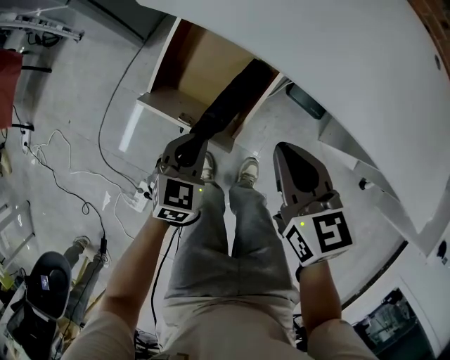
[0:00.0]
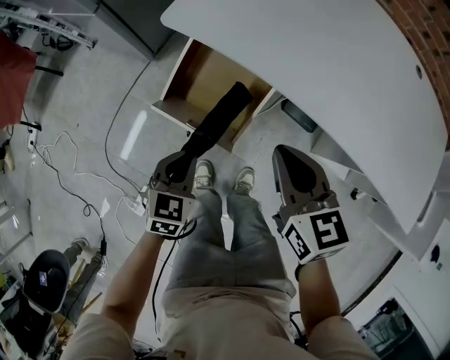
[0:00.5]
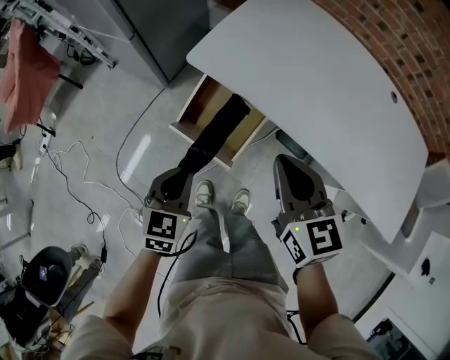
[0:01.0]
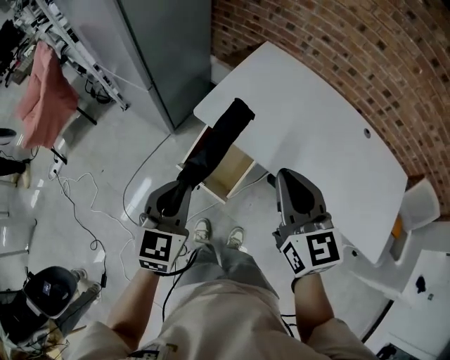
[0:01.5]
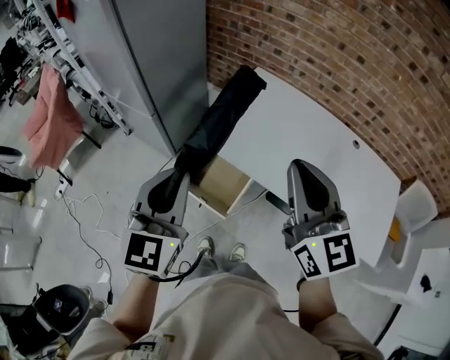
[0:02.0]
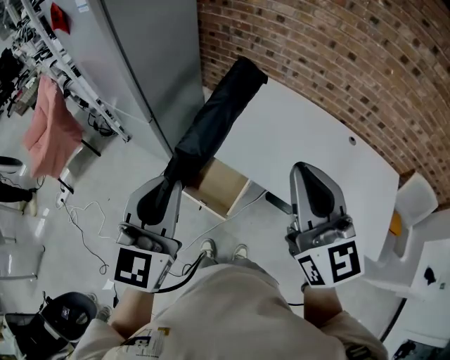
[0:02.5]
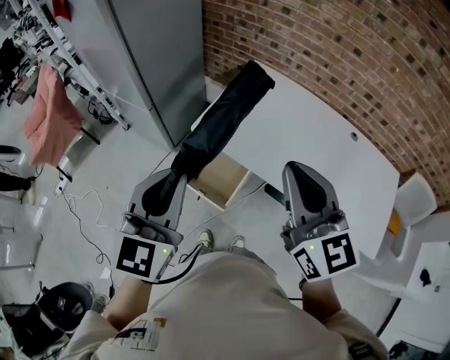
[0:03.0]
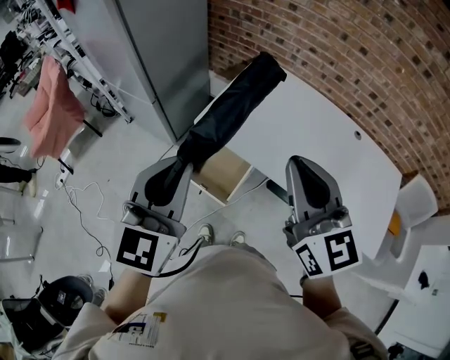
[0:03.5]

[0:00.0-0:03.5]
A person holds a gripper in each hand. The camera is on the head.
0:00.0 to 0:02.0: Both grippers move upward, roughly 50 cm. The left gripper tips its fingers upward by about 40 degrees. The right gripper tilts its fingers about 40 degrees upward.
0:02.0 to 0:03.5: There are only small adjustments of the grippers.

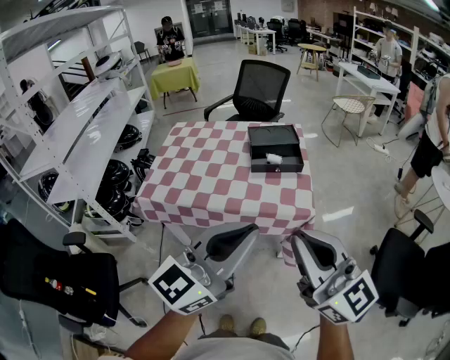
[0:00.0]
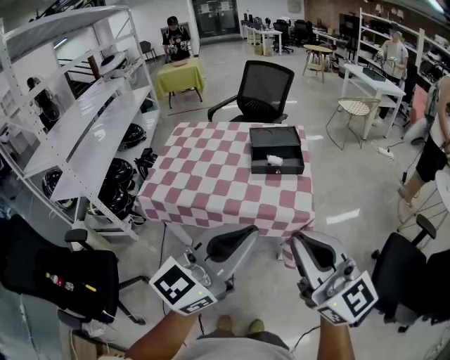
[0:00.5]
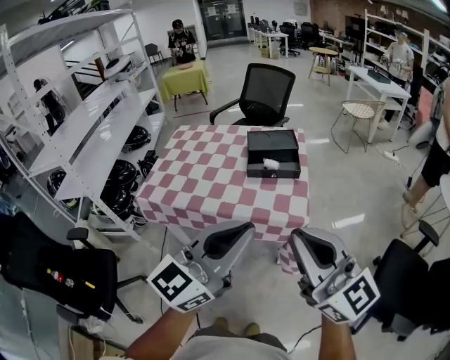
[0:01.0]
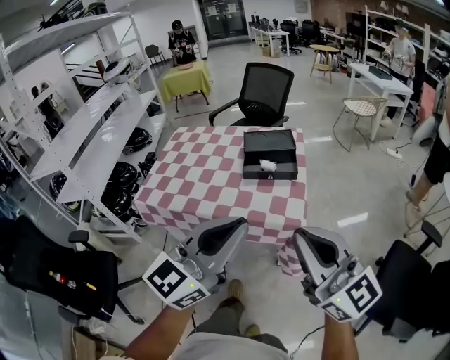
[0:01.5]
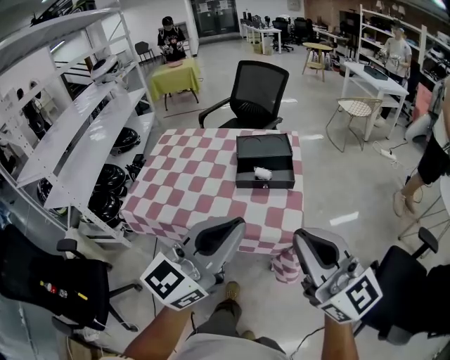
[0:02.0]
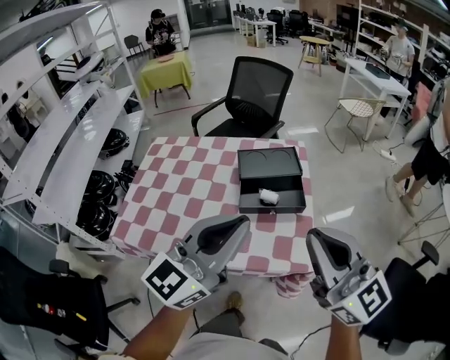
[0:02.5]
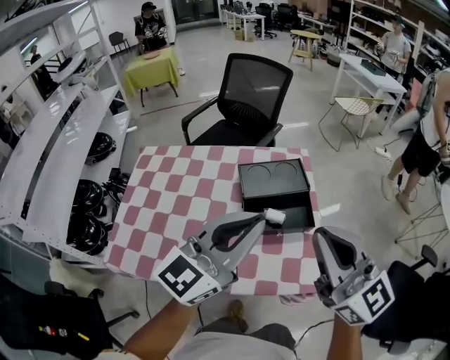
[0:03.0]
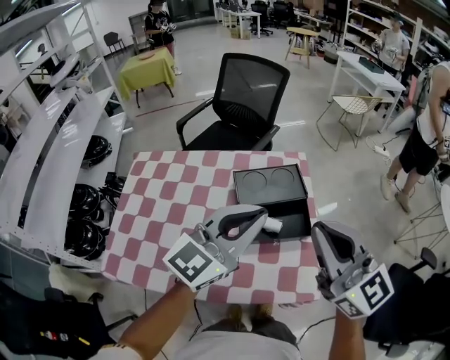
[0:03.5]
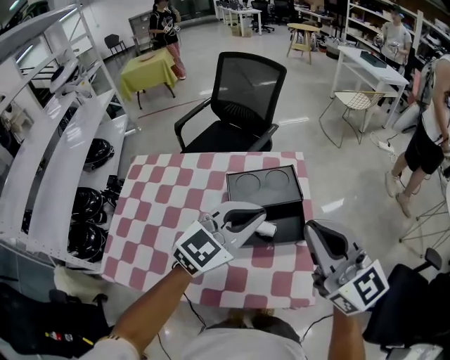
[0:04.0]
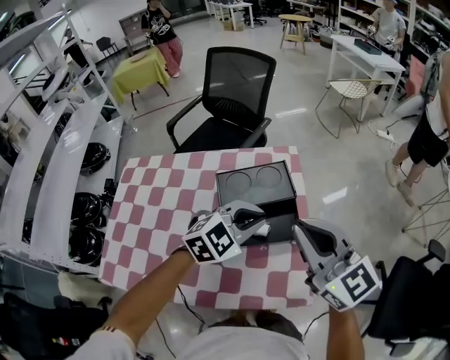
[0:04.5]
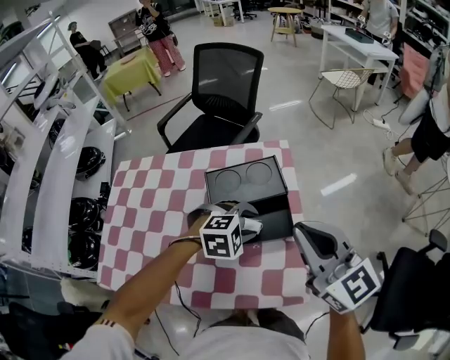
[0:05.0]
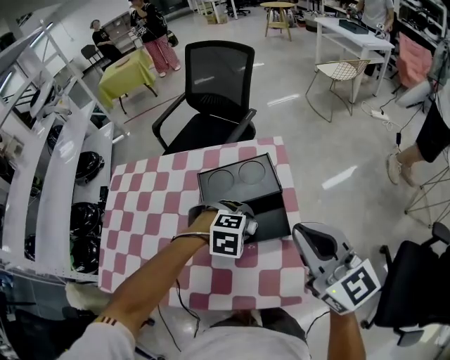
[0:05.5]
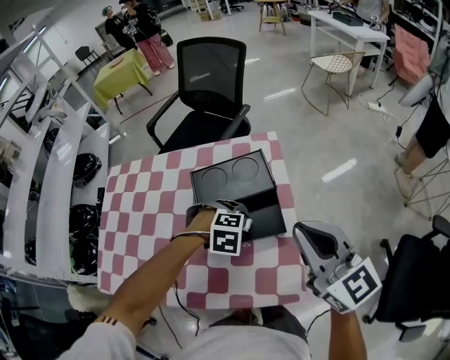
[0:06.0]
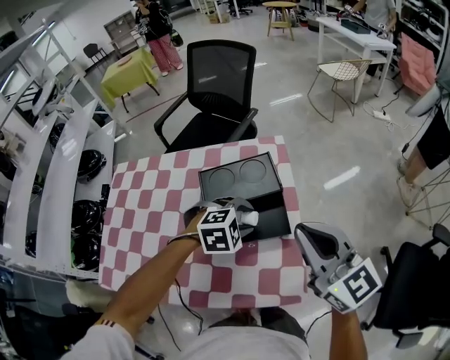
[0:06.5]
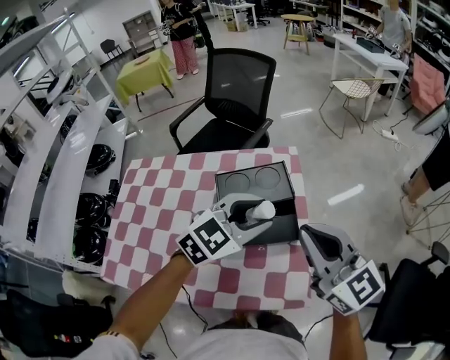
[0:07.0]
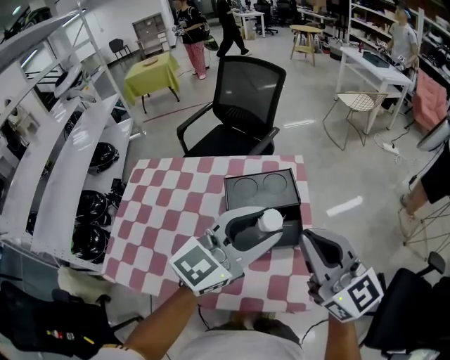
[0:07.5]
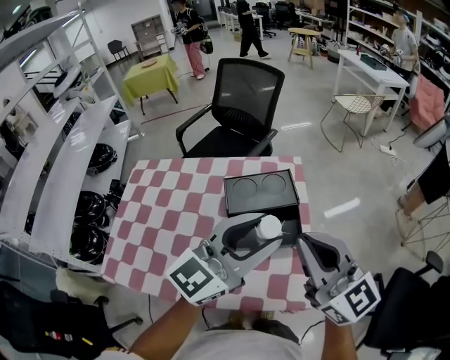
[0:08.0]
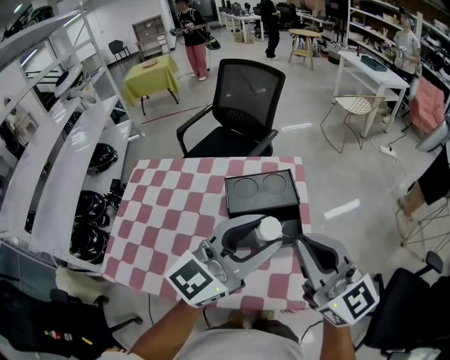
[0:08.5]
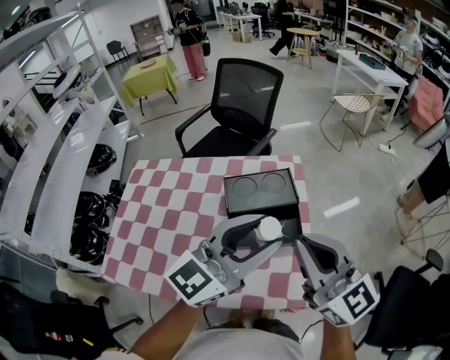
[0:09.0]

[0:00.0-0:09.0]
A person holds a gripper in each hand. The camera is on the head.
0:00.0 to 0:02.0: Both grippers travel together forward and to the right, roughly 15 cm.
0:02.0 to 0:04.5: The left gripper moves forward and downward, approximately 40 cm, and tips its fingers downward by approximately 50 degrees. Meanwhile the right gripper moves forward, roughly 35 cm.
0:04.5 to 0:07.0: The left gripper reaches about 15 cm downward, then returns, and opens up.
0:07.0 to 0:09.0: The left gripper is displaced upward and backward by some 15 cm, and tips its fingers upward by about 30 degrees. Meanwhile the right gripper shifts by about 5 cm.

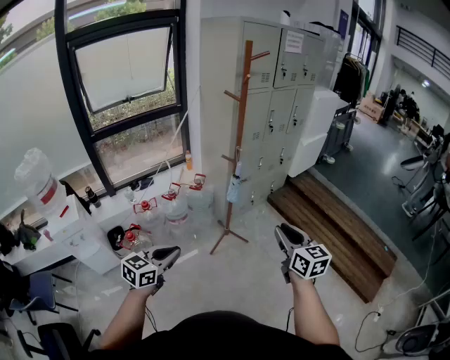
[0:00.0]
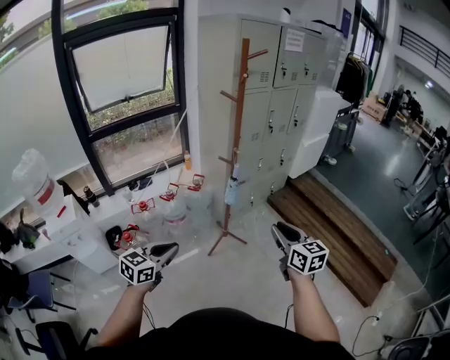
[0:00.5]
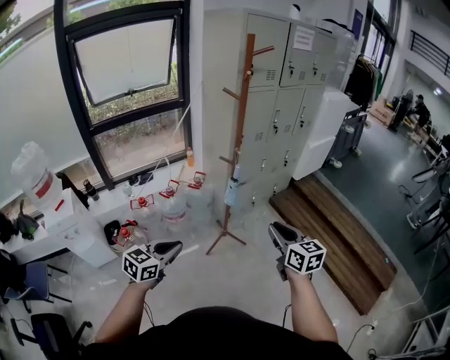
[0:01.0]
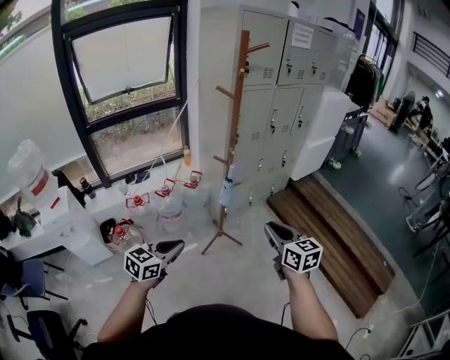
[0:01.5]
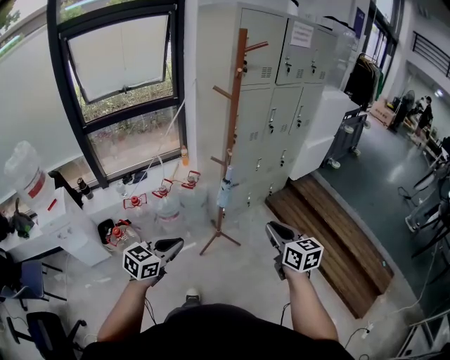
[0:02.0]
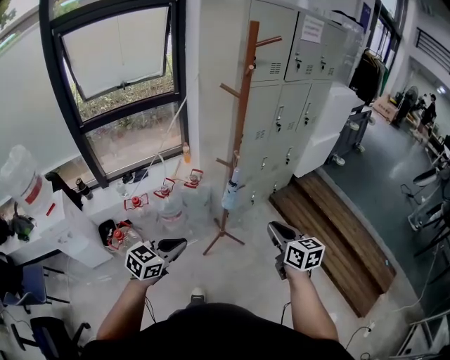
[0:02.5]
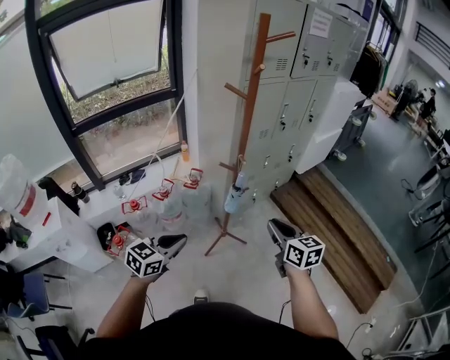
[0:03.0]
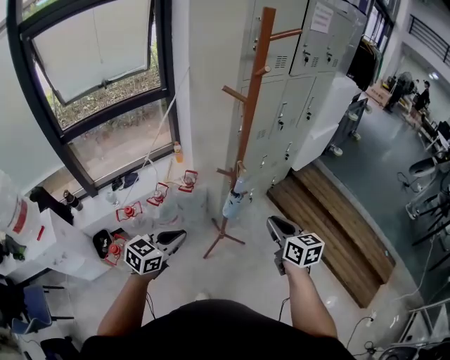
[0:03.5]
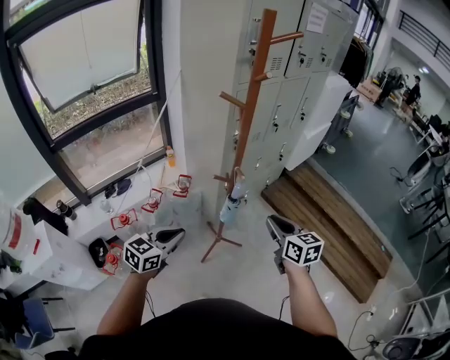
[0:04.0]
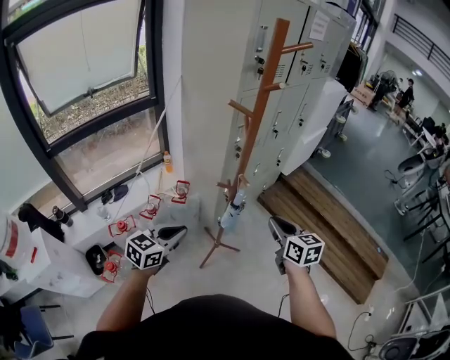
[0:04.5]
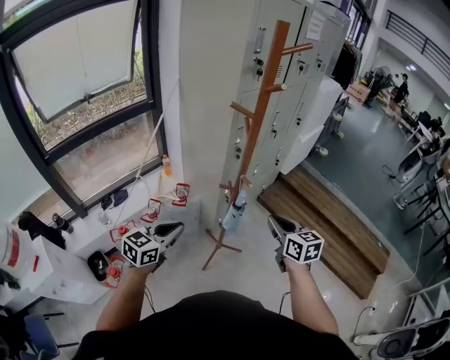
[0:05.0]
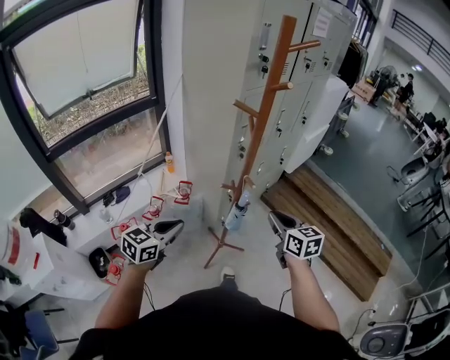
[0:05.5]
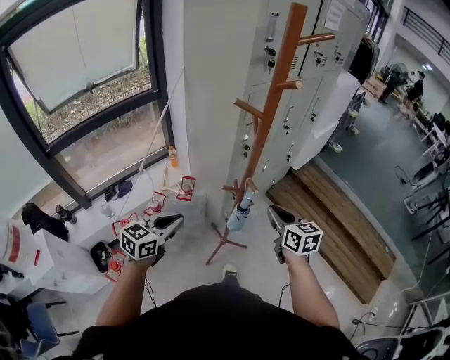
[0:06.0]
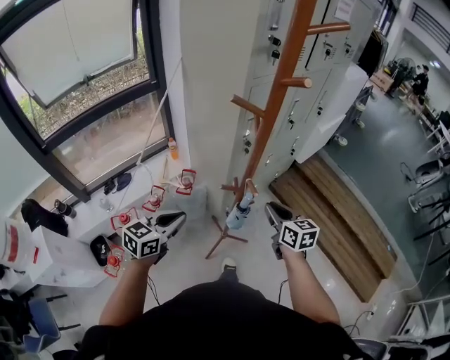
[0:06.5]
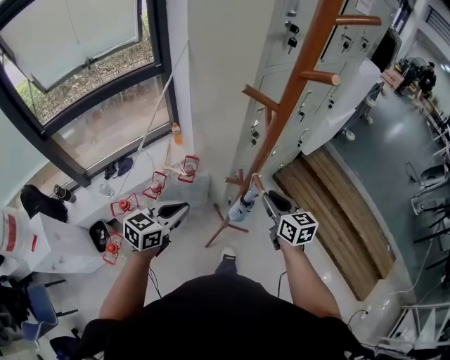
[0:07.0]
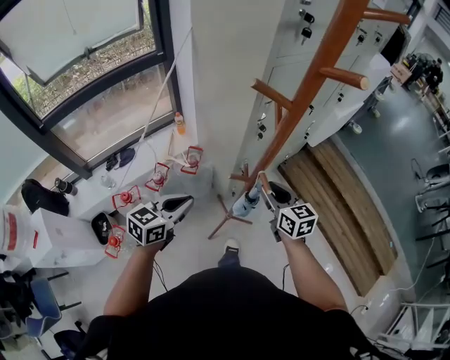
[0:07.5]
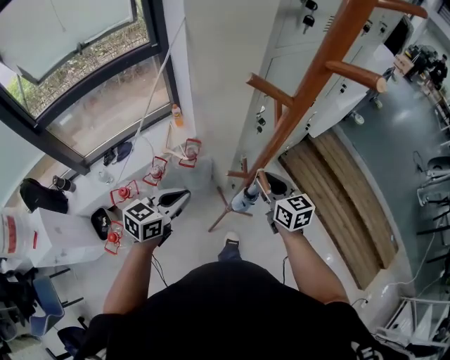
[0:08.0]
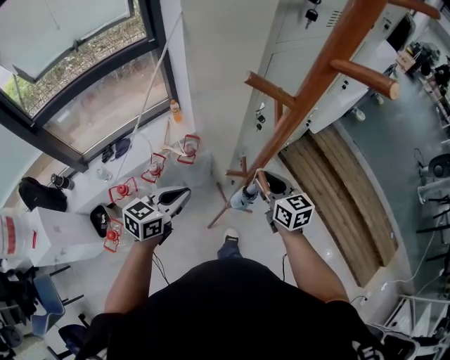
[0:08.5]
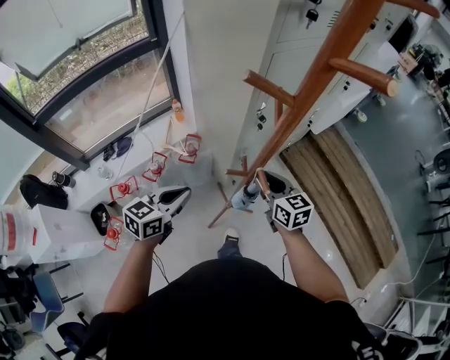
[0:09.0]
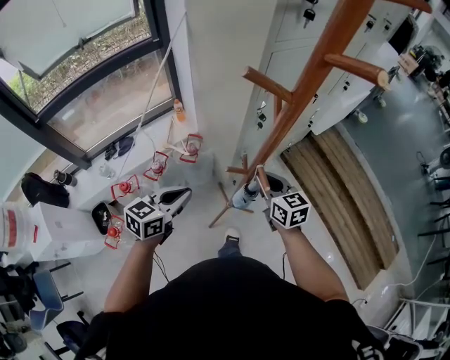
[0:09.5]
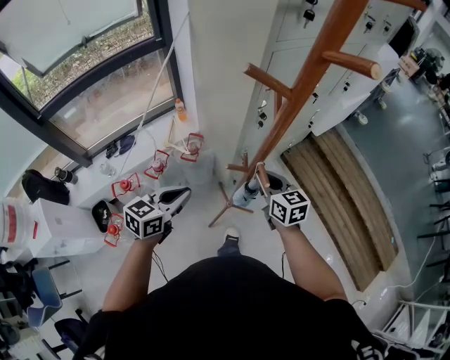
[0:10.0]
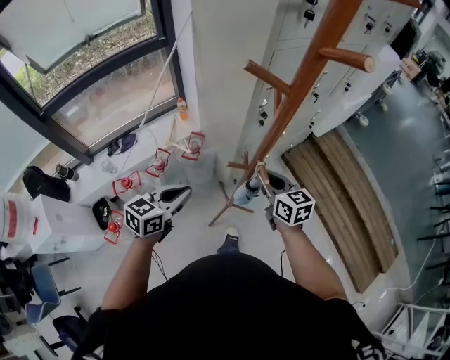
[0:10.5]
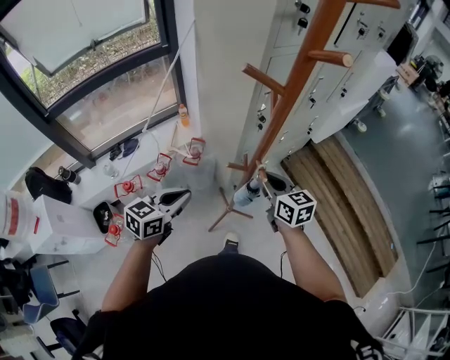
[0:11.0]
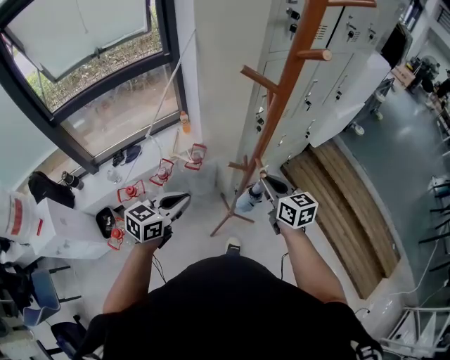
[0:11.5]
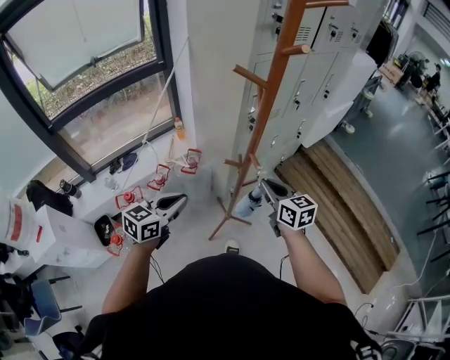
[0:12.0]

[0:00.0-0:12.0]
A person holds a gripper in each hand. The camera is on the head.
0:00.0 to 0:02.0: The left gripper shifts about 20 cm forward and to the right. Meanwhile the right gripper shifts some 15 cm forward.
0:02.0 to 0:04.0: Both grippers move forward and to the left, approximately 30 cm.
0:04.0 to 0:06.0: Both grippers travel together forward and to the left, about 15 cm.
0:06.0 to 0:08.0: The left gripper moves forward and downward, about 15 cm; the right gripper is displaced forward, downward and to the left by approximately 20 cm.
0:08.0 to 0:10.0: The right gripper closes up.
0:10.0 to 0:12.0: The left gripper moves backward, roughly 10 cm; the right gripper heads backward and upward, covering approximately 15 cm.

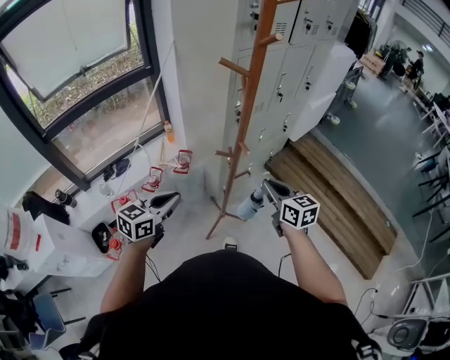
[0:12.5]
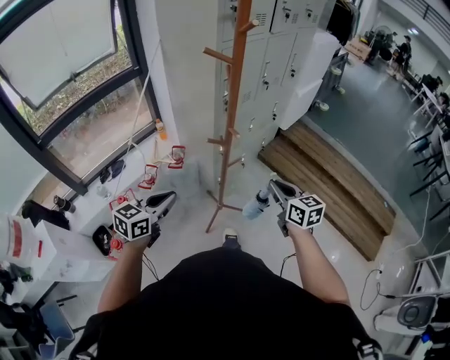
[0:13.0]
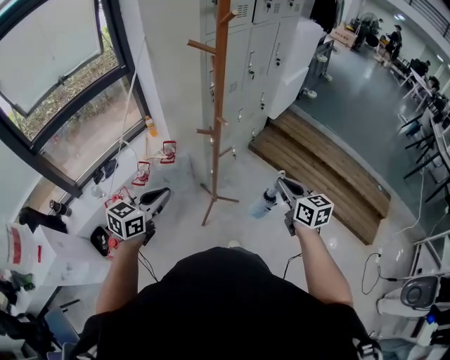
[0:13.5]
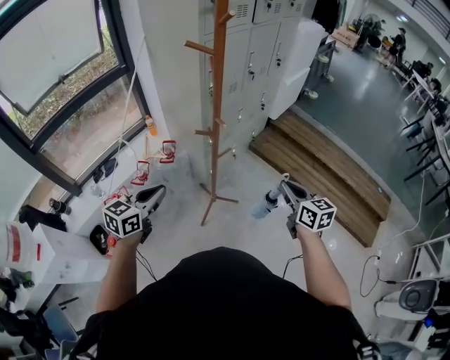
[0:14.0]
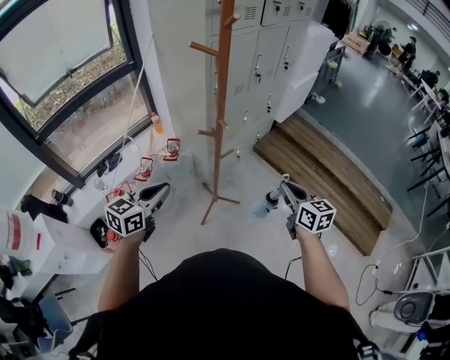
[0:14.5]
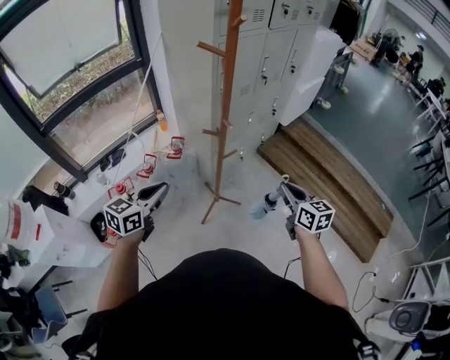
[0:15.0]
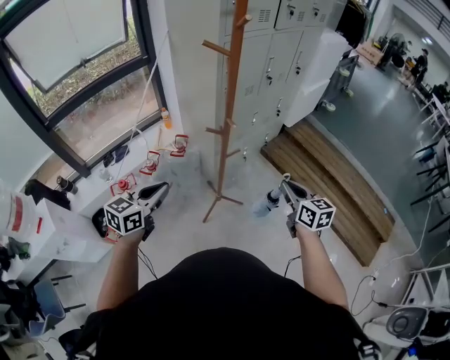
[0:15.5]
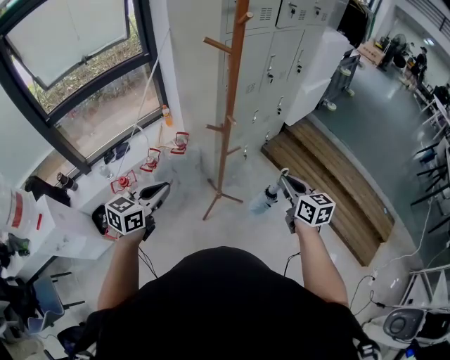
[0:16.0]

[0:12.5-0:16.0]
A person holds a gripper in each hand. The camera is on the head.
0:12.5 to 0:14.5: The left gripper shifts about 5 cm backward; the right gripper travels to the right and backward by roughly 20 cm.
0:14.5 to 0:16.0: There are only small adjustments of the grippers.
